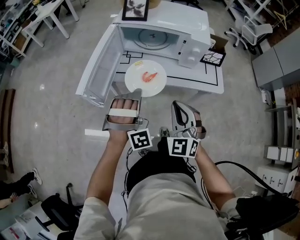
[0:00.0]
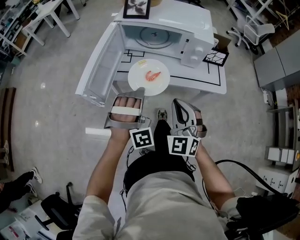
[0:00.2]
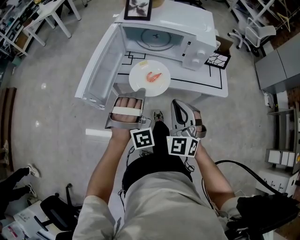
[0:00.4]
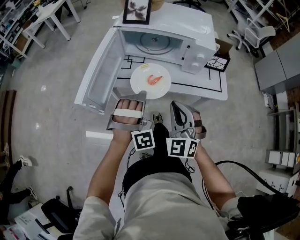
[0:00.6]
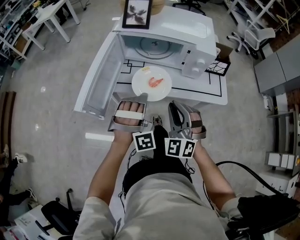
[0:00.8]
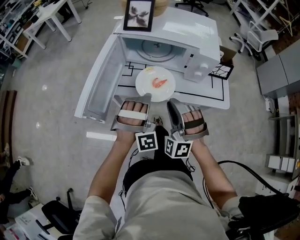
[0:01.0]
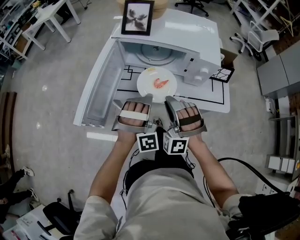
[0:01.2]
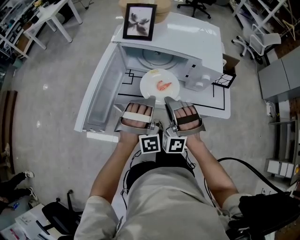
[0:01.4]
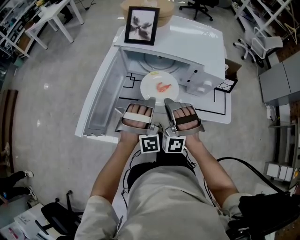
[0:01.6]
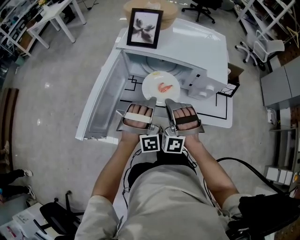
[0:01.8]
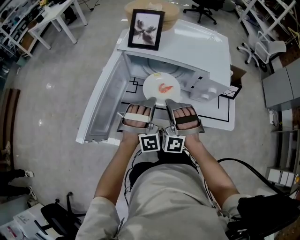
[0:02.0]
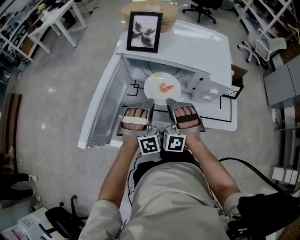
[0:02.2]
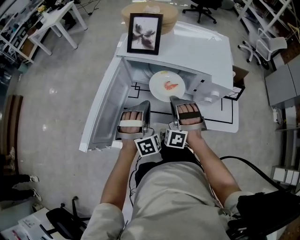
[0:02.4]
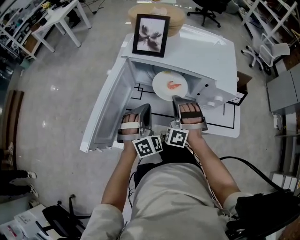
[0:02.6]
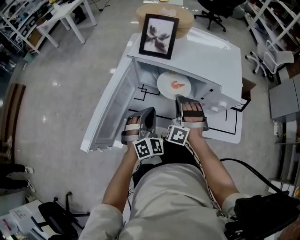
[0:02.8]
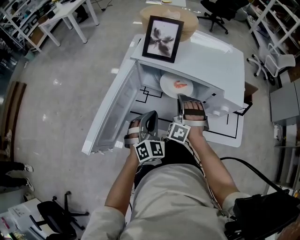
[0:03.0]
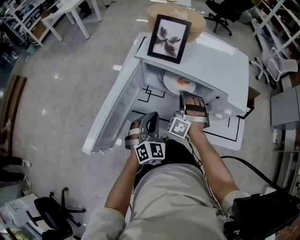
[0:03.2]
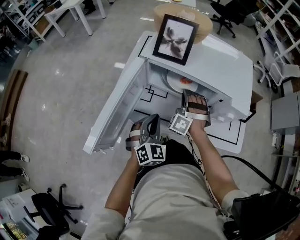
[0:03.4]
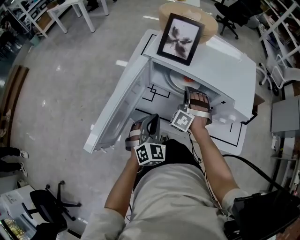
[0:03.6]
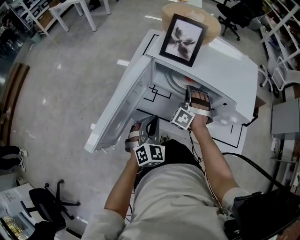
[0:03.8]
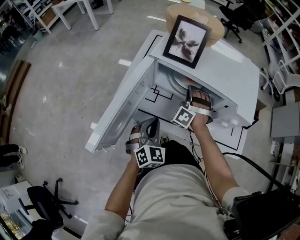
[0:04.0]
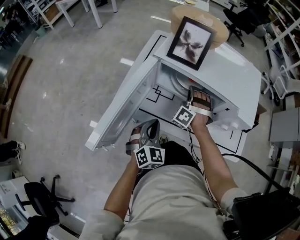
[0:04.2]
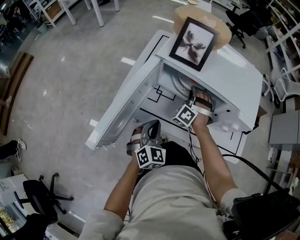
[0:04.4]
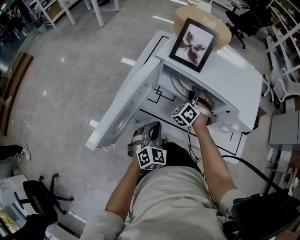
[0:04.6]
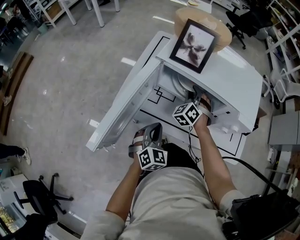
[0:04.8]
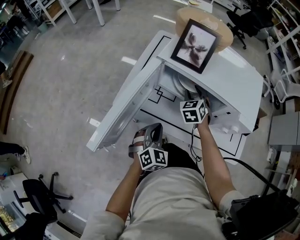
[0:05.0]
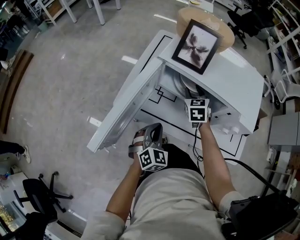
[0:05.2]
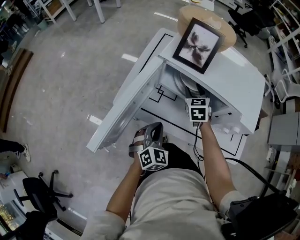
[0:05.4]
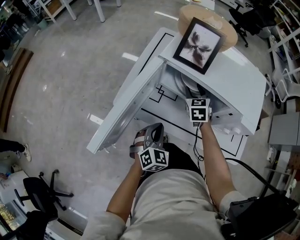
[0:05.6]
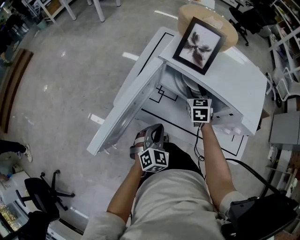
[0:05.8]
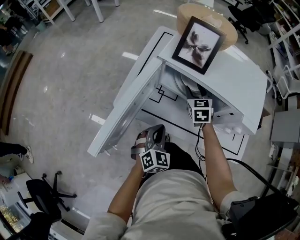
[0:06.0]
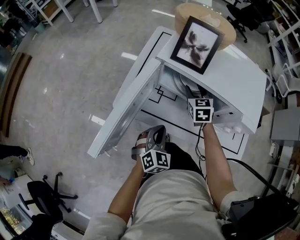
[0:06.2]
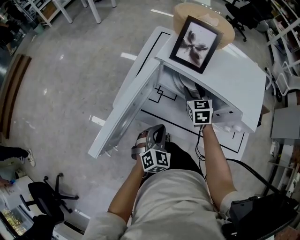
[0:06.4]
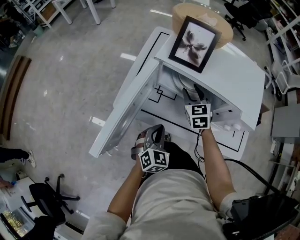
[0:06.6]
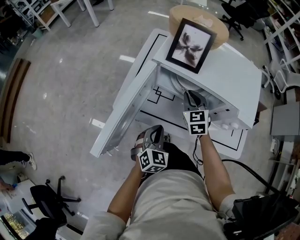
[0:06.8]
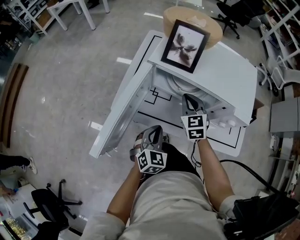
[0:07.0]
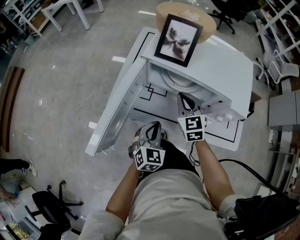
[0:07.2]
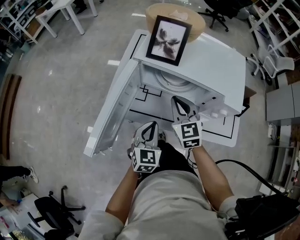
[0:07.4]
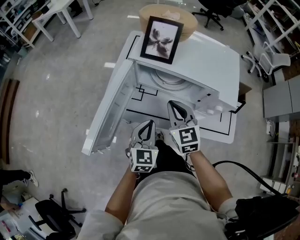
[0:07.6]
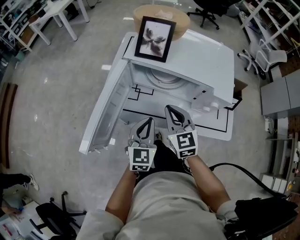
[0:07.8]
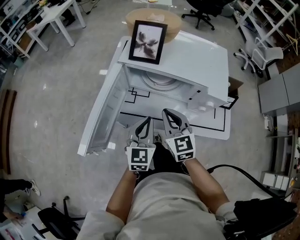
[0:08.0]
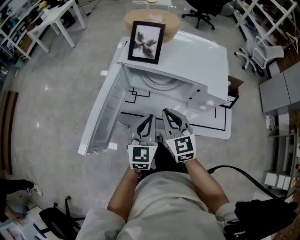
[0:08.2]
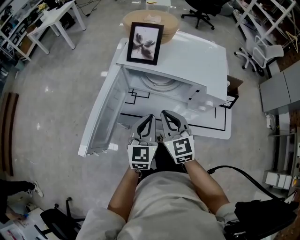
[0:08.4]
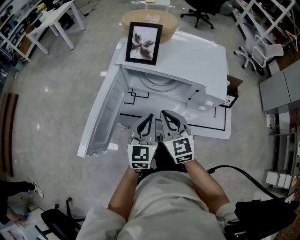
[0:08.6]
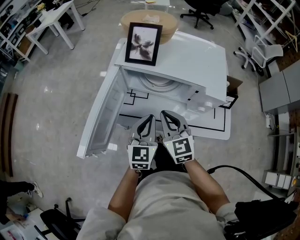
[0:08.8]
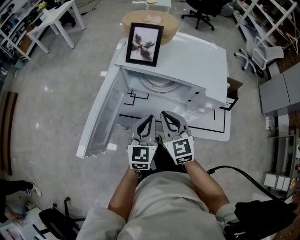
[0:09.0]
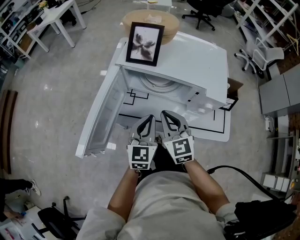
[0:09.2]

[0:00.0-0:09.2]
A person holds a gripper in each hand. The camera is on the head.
0:00.0 to 0:01.6: The grippers both shift forward by some 15 cm. The right gripper twists approximately 50 degrees counterclockwise, seen from behind.
0:01.6 to 0:03.0: The left gripper is displaced downward and to the left by some 5 cm, and rolls counterclockwise, seen from behind, by roughly 50 degrees. Meanwhile the right gripper is displaced forward by approximately 15 cm.
0:03.0 to 0:04.6: The right gripper travels forward by roughly 10 cm. Meanwhile the left gripper changes place by roughly 5 cm.
0:04.6 to 0:06.2: The right gripper twists roughly 50 degrees clockwise, seen from behind, and opens up.
0:06.2 to 0:07.6: The left gripper heads upward, covering roughly 5 cm, and turns by about 20 degrees; the right gripper moves backward and upward, roughly 20 cm, and closes.
0:07.6 to 0:09.2: The left gripper shifts by approximately 5 cm.

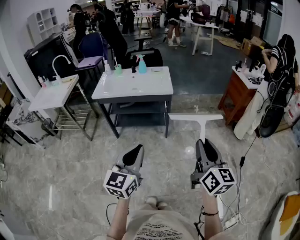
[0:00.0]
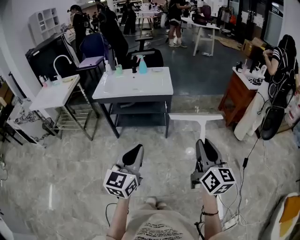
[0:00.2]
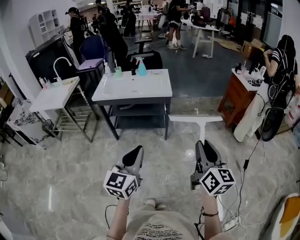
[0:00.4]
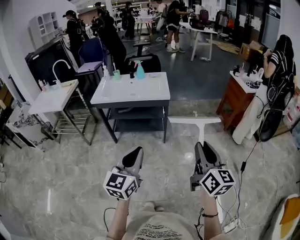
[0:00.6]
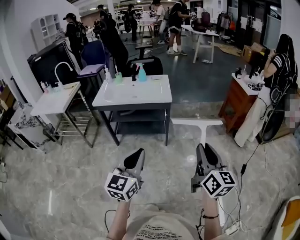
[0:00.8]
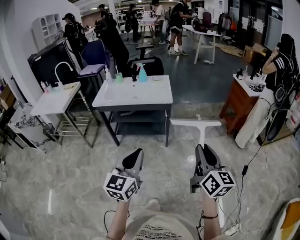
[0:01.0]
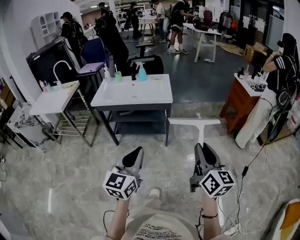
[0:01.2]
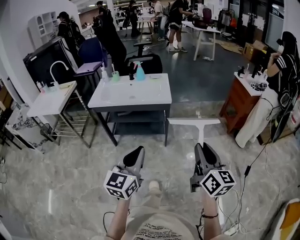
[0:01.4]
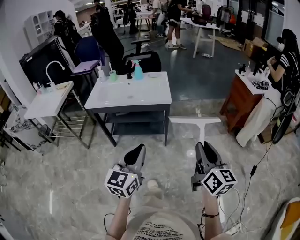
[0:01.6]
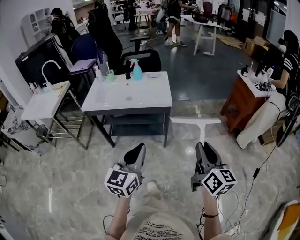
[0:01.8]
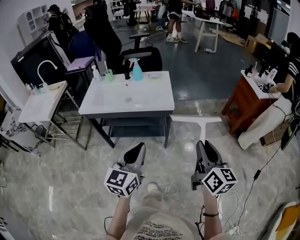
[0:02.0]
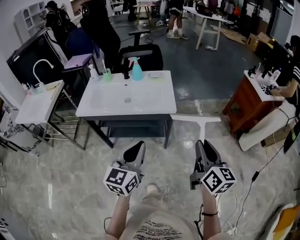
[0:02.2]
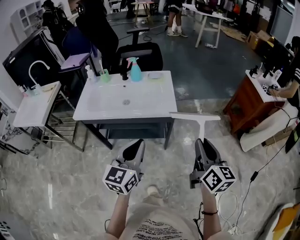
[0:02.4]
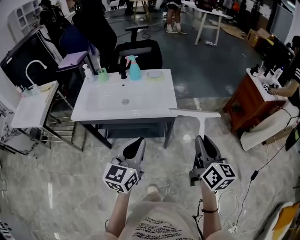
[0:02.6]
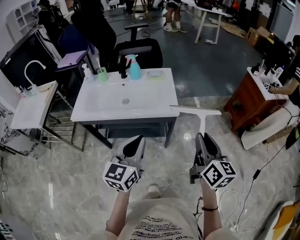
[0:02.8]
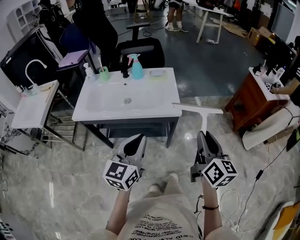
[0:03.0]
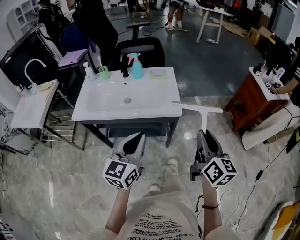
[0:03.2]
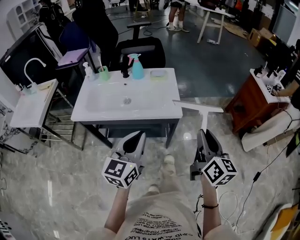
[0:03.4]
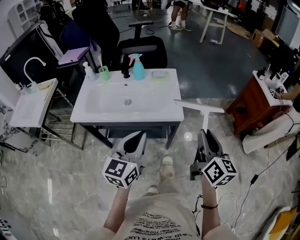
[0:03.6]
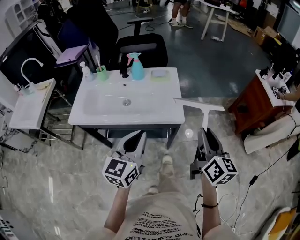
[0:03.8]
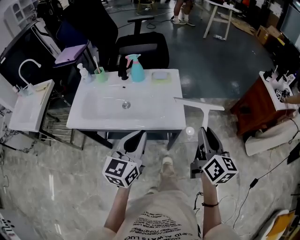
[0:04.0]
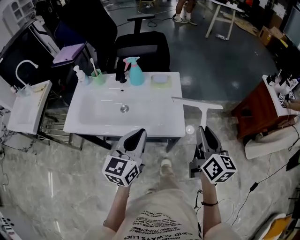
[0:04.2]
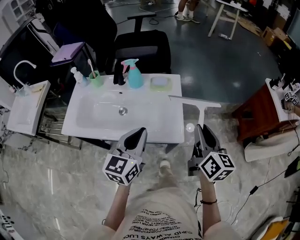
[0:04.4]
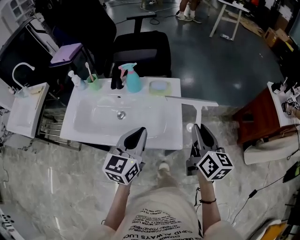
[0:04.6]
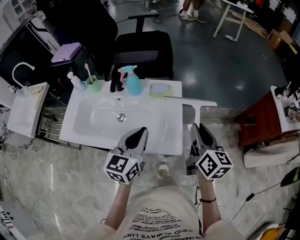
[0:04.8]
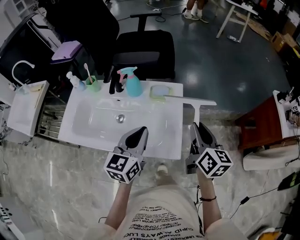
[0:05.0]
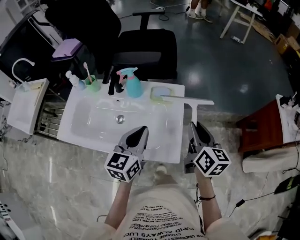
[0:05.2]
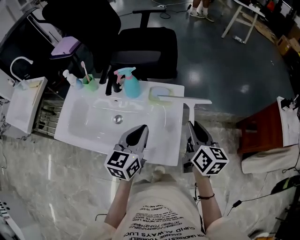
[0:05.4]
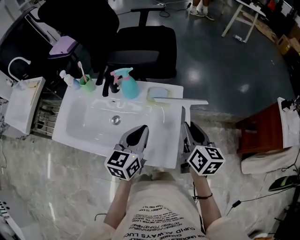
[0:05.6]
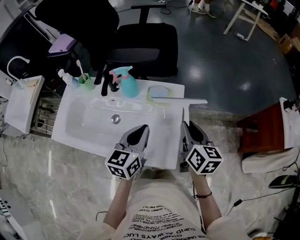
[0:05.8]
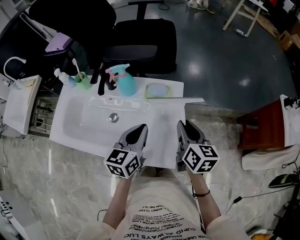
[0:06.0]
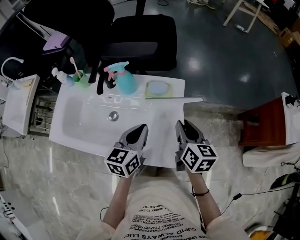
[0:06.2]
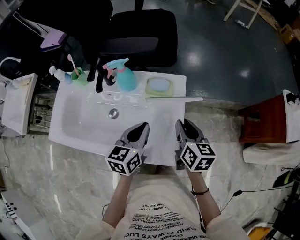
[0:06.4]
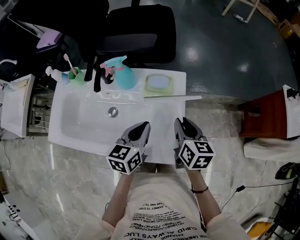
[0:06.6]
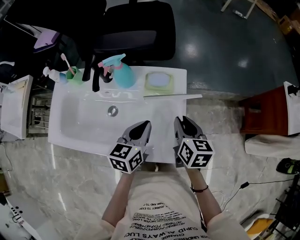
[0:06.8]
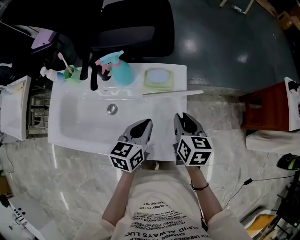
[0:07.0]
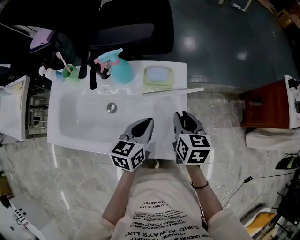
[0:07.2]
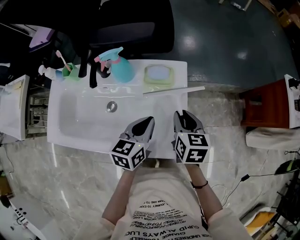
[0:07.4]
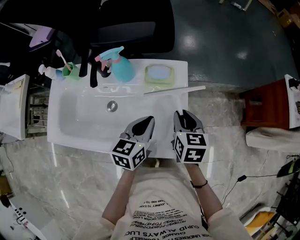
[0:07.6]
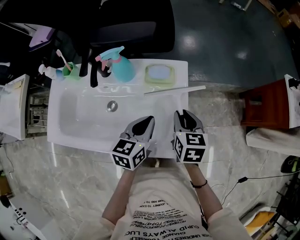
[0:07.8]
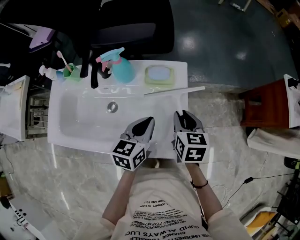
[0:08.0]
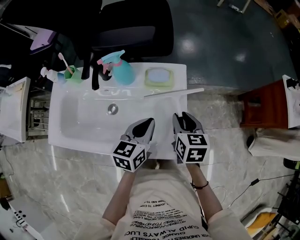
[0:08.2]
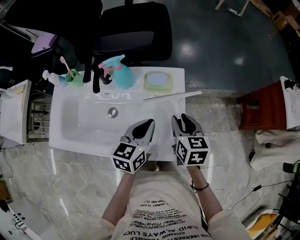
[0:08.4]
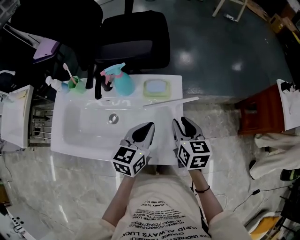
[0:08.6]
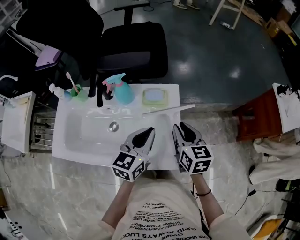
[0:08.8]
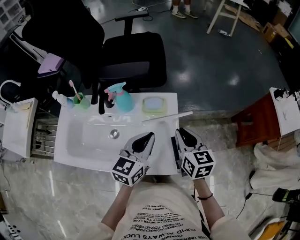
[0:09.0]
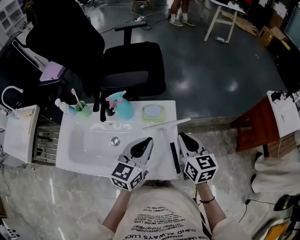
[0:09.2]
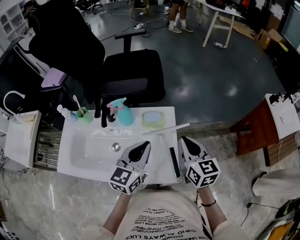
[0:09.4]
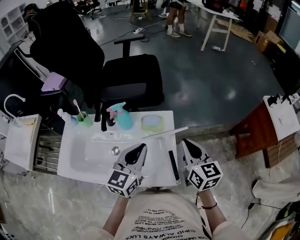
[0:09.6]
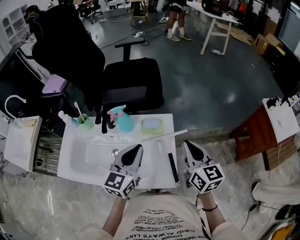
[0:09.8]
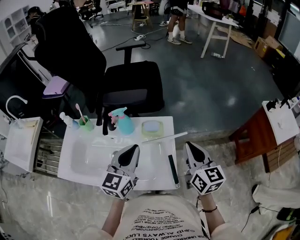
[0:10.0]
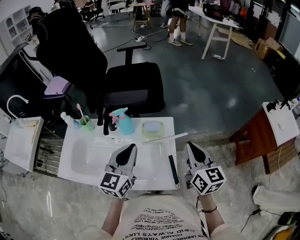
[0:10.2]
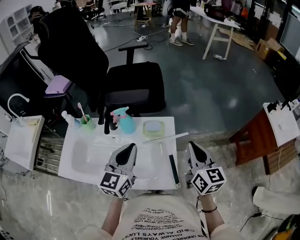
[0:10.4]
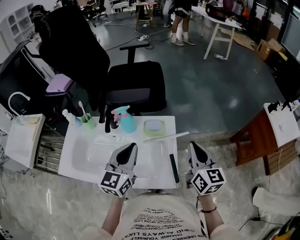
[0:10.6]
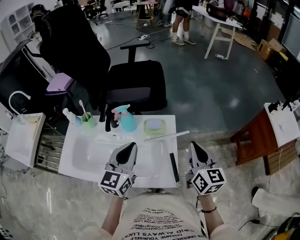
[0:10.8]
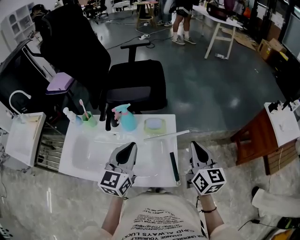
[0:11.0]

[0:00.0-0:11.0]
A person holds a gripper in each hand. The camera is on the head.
0:00.0 to 0:01.6: The grippers both shift forward by about 10 cm.
0:01.6 to 0:03.2: Both grippers move forward, approximately 25 cm.
0:03.2 to 0:04.8: Both grippers travel together forward, roughly 25 cm.
0:04.8 to 0:06.2: Both grippers move downward and forward, some 15 cm.
0:06.2 to 0:07.8: The right gripper changes place by some 5 cm, and swivels approximately 20 degrees.
0:07.8 to 0:09.4: The two grippers go roughly 15 cm upward. The left gripper turns by about 20 degrees; the right gripper swivels approximately 20 degrees.
0:09.4 to 0:11.0: The left gripper shifts about 5 cm to the left; the right gripper shifts by about 5 cm.

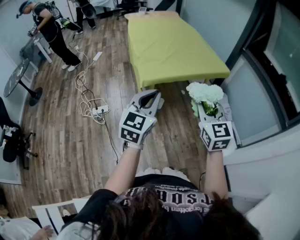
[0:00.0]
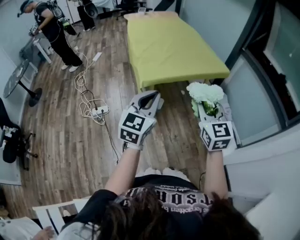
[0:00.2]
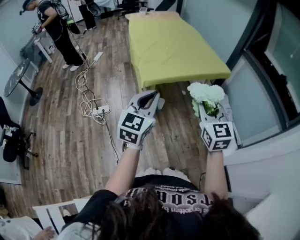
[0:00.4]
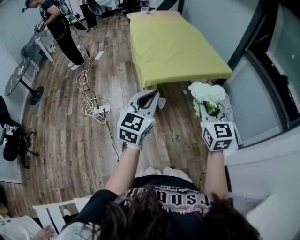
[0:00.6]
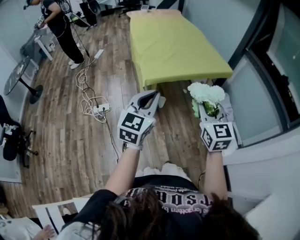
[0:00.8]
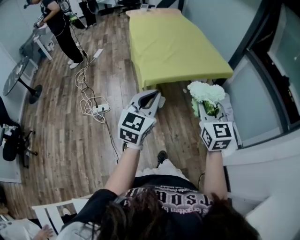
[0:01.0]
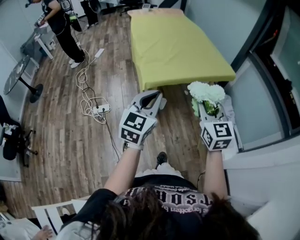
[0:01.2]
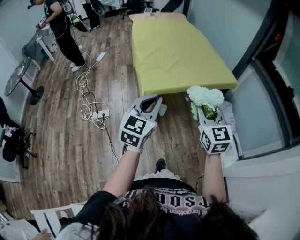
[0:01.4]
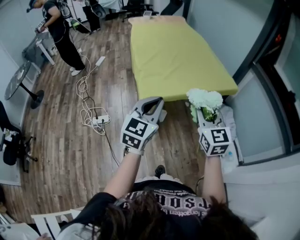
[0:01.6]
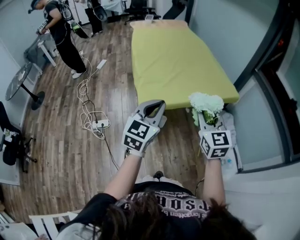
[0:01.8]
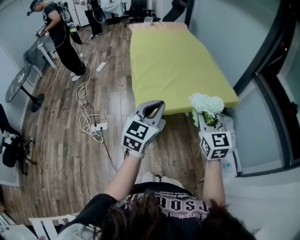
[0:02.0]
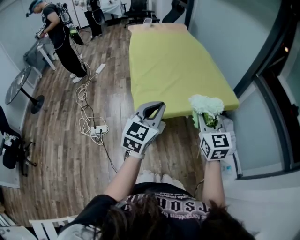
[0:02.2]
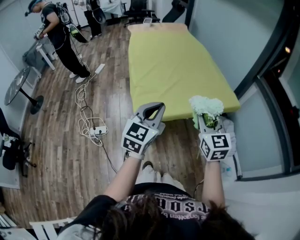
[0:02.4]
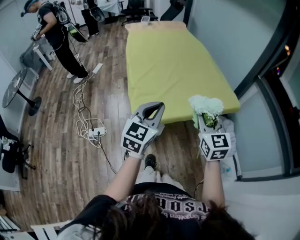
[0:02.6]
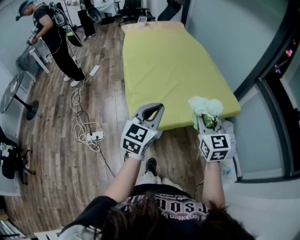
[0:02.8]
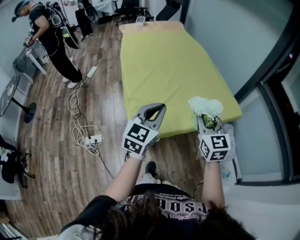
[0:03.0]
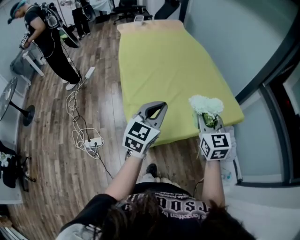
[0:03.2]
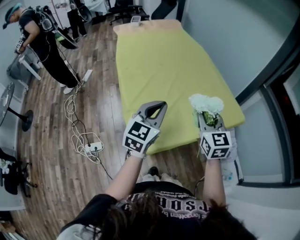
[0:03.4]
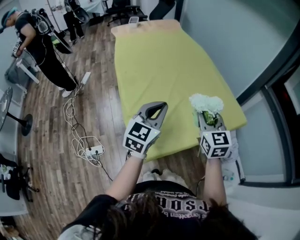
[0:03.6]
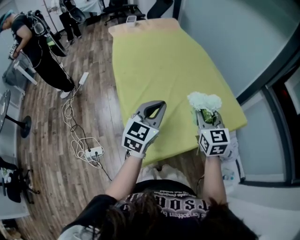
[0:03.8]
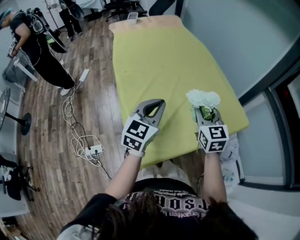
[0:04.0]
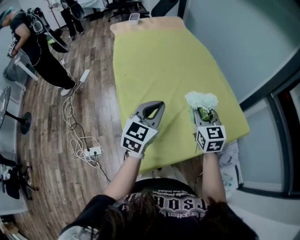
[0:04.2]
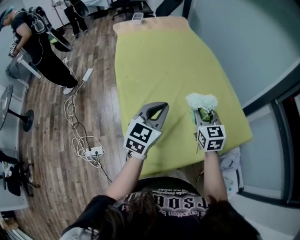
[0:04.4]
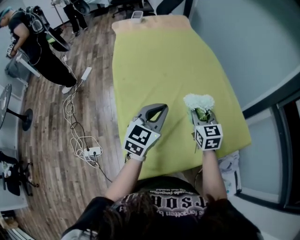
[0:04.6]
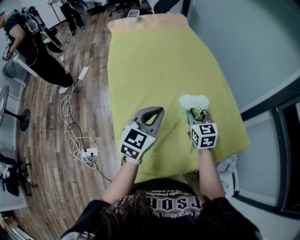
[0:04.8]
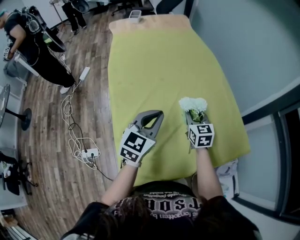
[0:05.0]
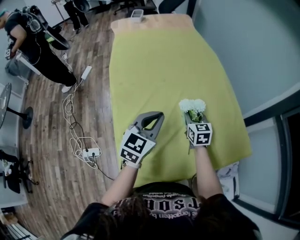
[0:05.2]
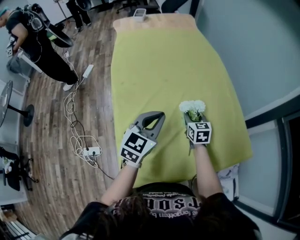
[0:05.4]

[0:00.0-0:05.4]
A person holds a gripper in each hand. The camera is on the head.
0:00.0 to 0:01.4: The two grippers go some 10 cm forward.
0:01.4 to 0:02.8: Both grippers travel together forward, approximately 20 cm.
0:02.8 to 0:04.0: The grippers both shift forward by approximately 20 cm.
0:04.0 to 0:05.4: The right gripper travels downward and forward by about 25 cm, and changes its angle by some 20 degrees. Meanwhile the left gripper shifts about 10 cm forward.
